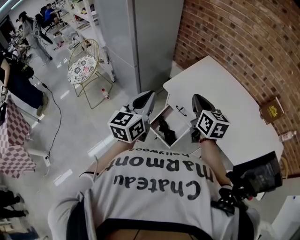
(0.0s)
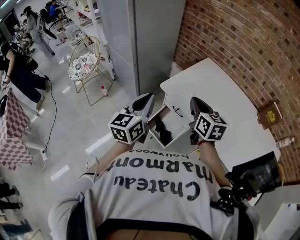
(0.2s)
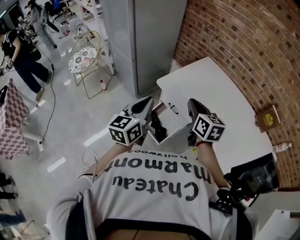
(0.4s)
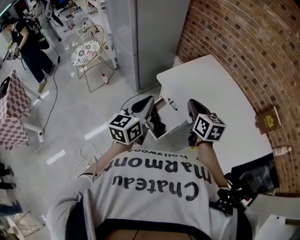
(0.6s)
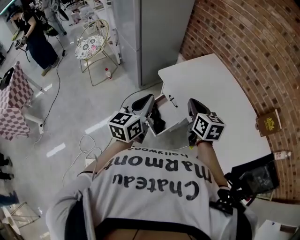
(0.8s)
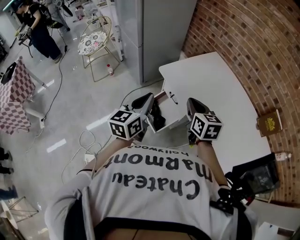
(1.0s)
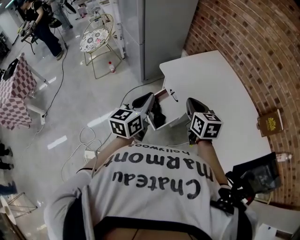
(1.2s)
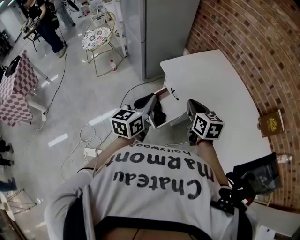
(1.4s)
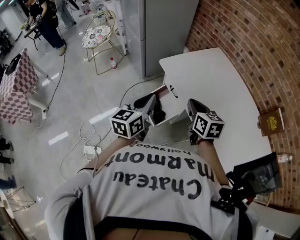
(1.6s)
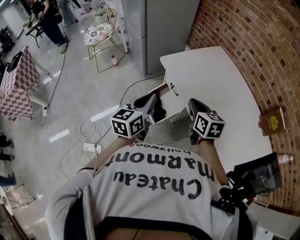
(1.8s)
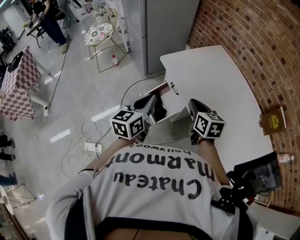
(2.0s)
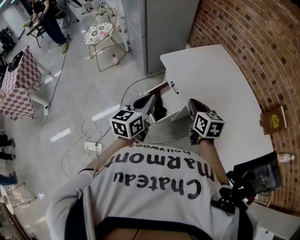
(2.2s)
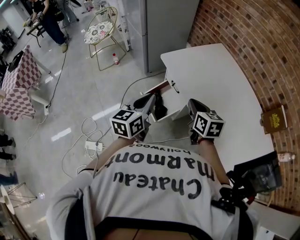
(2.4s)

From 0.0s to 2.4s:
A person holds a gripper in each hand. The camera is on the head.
From 0.0s to 1.2s: The right gripper travels to the right, downward and backward by some 15 cm, and swivels some 20 degrees; the left gripper is displaced to the right, backward and downward by roughly 15 cm.
From 1.2s to 2.4s: The right gripper shifts by approximately 5 cm; the left gripper ends up approximately 5 cm from where it was.

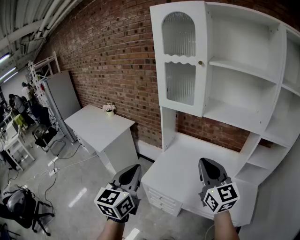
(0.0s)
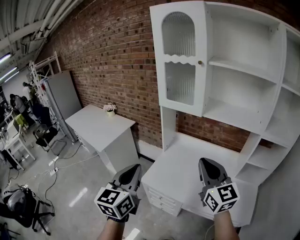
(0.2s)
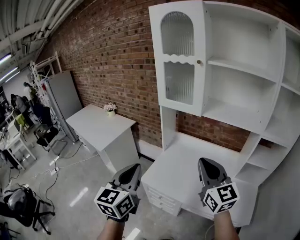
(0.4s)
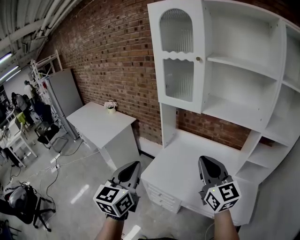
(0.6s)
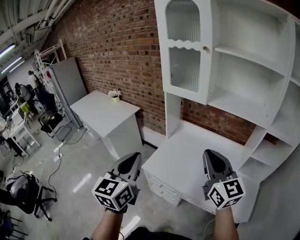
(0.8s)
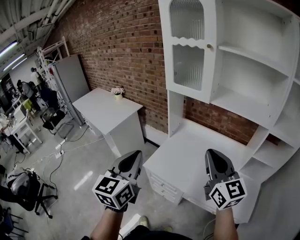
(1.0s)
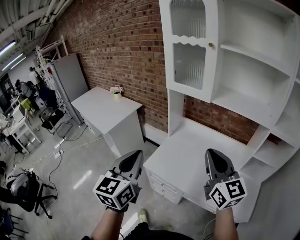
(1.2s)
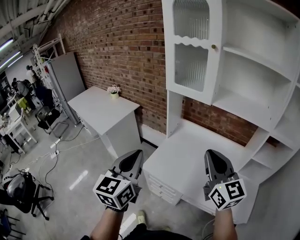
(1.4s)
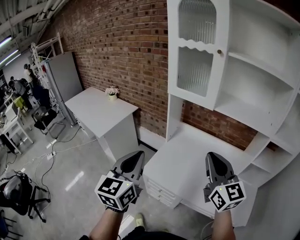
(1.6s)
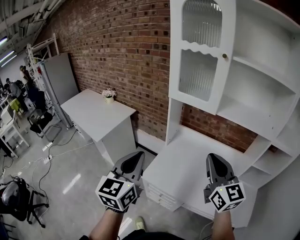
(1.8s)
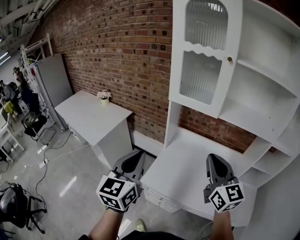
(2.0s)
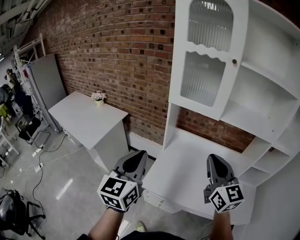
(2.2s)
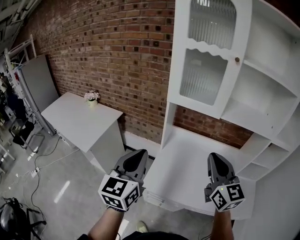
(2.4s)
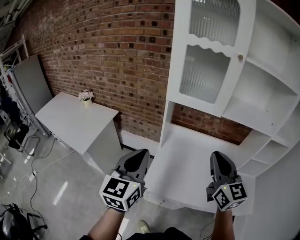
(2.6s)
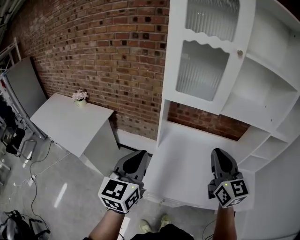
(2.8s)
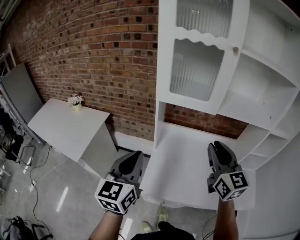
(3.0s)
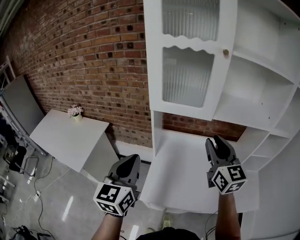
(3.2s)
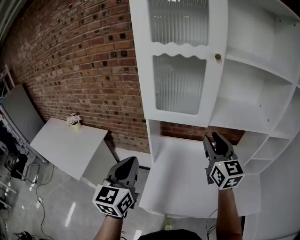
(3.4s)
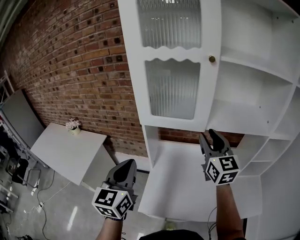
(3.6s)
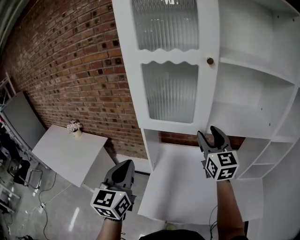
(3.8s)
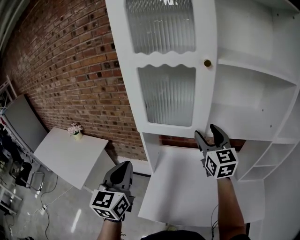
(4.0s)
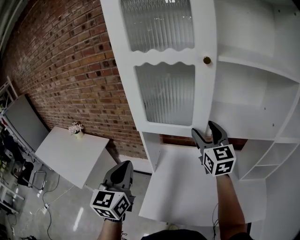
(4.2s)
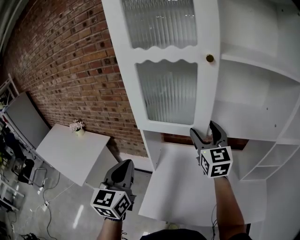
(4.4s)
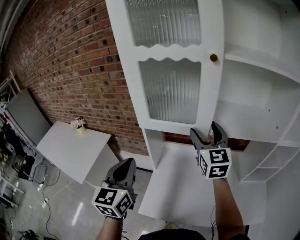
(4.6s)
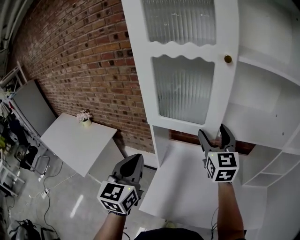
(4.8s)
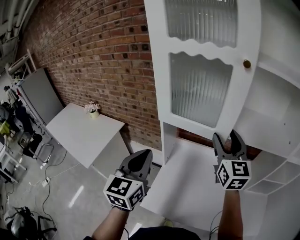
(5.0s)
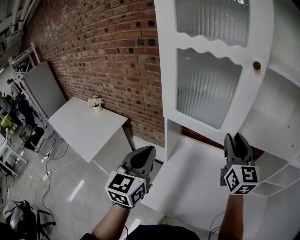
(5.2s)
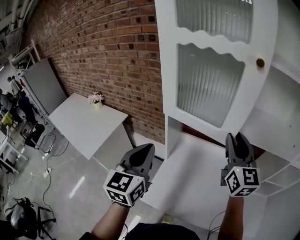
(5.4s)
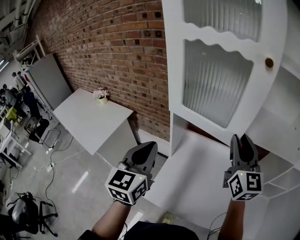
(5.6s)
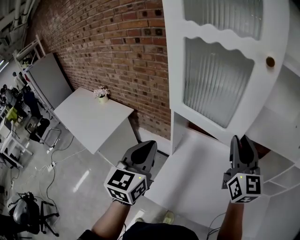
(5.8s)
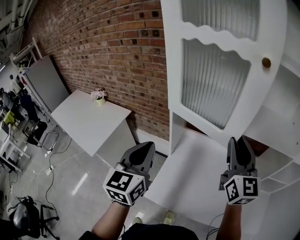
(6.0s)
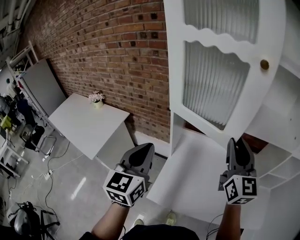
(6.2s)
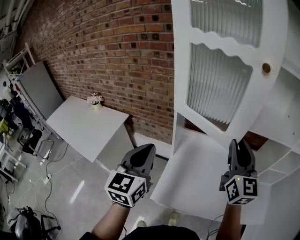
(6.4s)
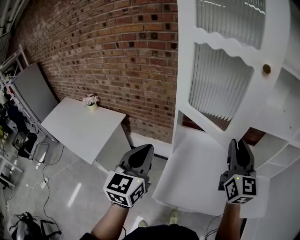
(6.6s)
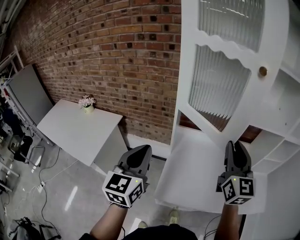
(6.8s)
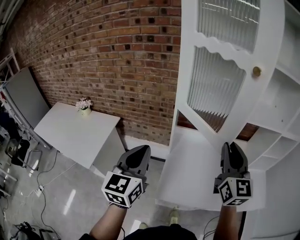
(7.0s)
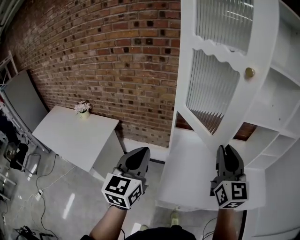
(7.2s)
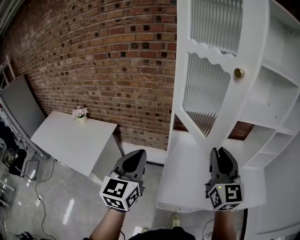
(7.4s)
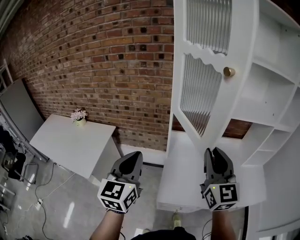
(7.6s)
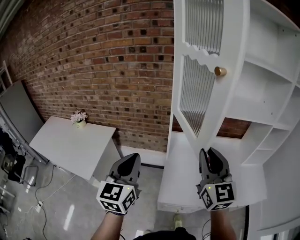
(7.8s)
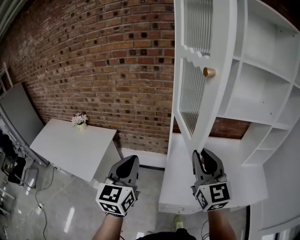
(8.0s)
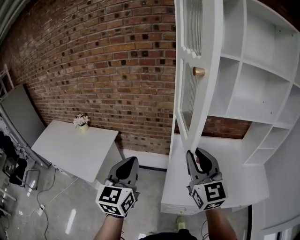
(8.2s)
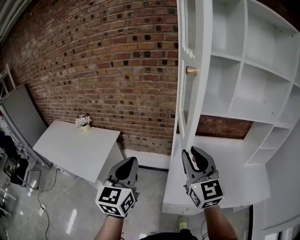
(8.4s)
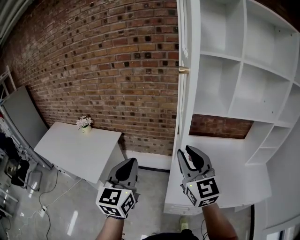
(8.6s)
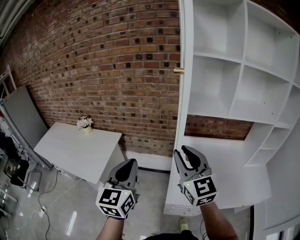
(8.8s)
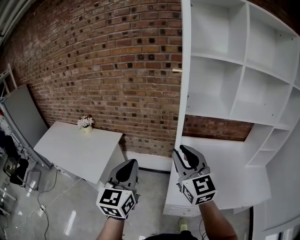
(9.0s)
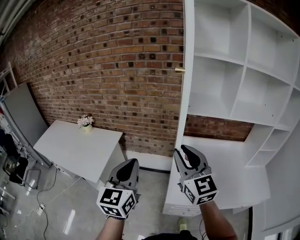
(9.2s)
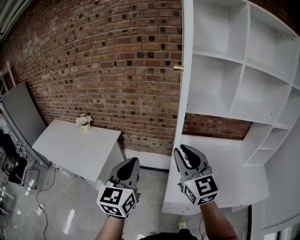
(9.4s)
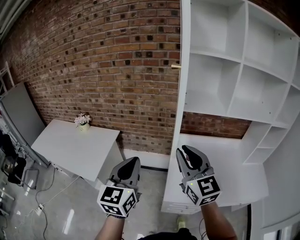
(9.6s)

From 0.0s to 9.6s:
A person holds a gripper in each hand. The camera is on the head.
From 0.0s to 1.6s: The grippers stay close to where they were, moving slightly.
From 1.6s to 3.2s: The two grippers go some 20 cm forward. The right gripper rotates about 20 degrees.
From 3.2s to 4.8s: The right gripper shifts about 15 cm forward, and opens, while the left gripper heads forward, covering about 10 cm.
From 4.8s to 6.4s: The left gripper heads to the left, covering roughly 5 cm. Meanwhile the right gripper shifts approximately 10 cm backward, and closes.
From 6.4s to 8.0s: The right gripper is displaced to the left and backward by approximately 20 cm; the left gripper is displaced to the left and backward by some 15 cm.
From 8.0s to 9.6s: The right gripper shifts some 10 cm to the left.

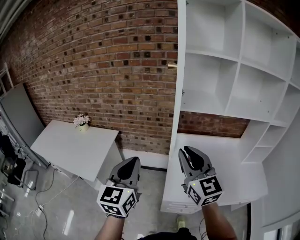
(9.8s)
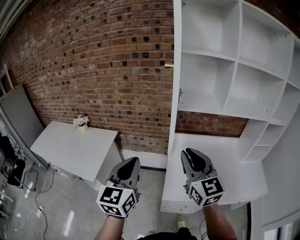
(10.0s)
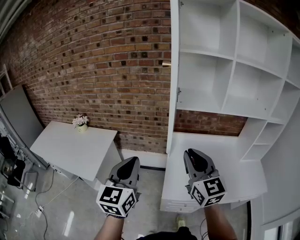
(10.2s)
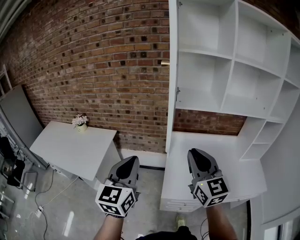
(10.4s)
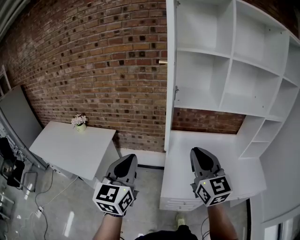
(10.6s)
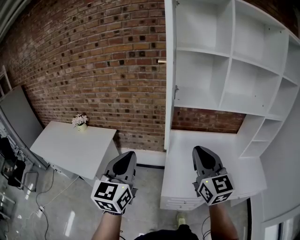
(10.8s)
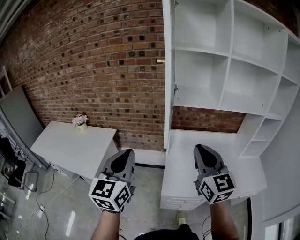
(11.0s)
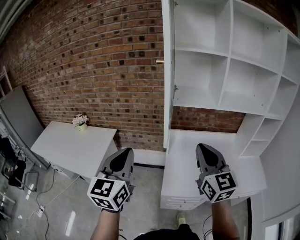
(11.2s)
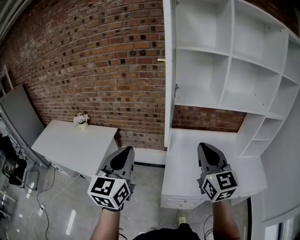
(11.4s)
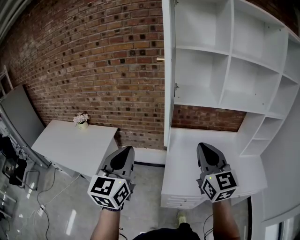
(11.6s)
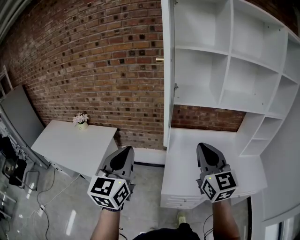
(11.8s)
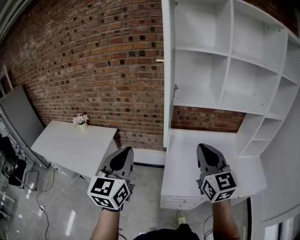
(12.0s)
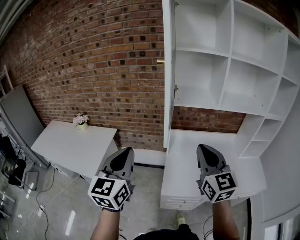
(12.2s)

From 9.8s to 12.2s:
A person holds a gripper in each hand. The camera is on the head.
From 9.8s to 11.0s: The right gripper goes roughly 5 cm to the right.
From 11.0s to 12.2s: Both grippers stay put.

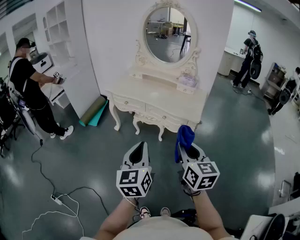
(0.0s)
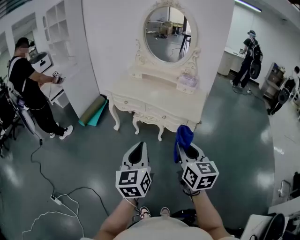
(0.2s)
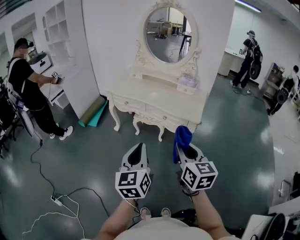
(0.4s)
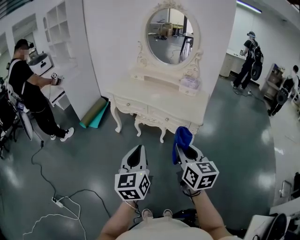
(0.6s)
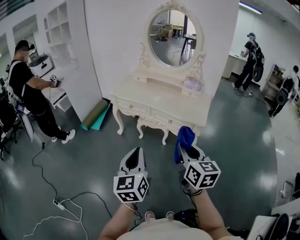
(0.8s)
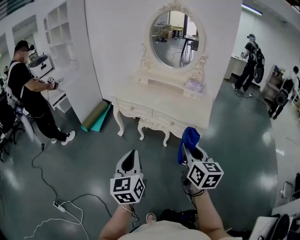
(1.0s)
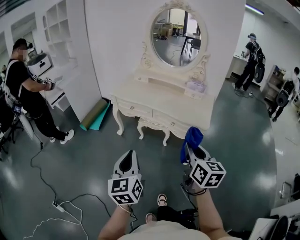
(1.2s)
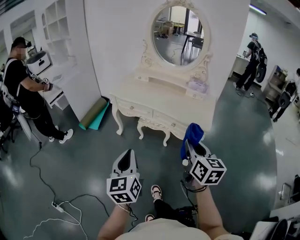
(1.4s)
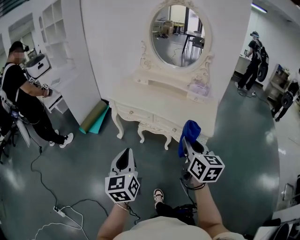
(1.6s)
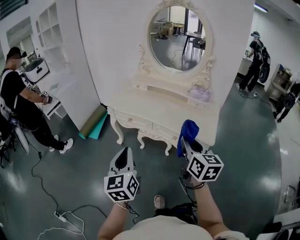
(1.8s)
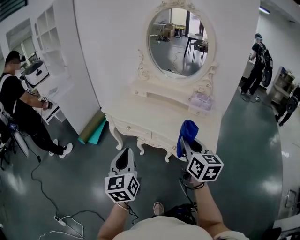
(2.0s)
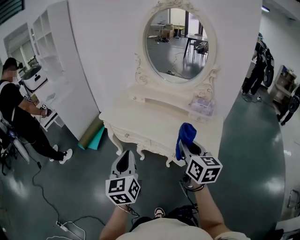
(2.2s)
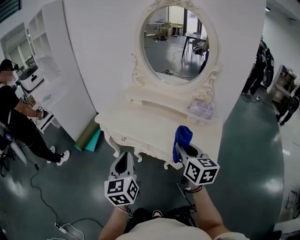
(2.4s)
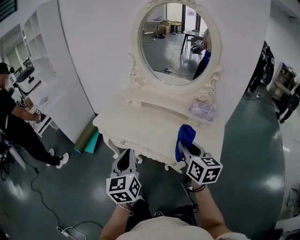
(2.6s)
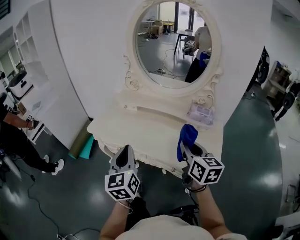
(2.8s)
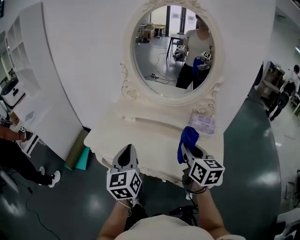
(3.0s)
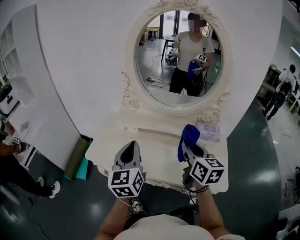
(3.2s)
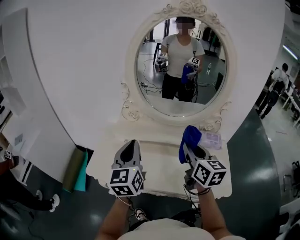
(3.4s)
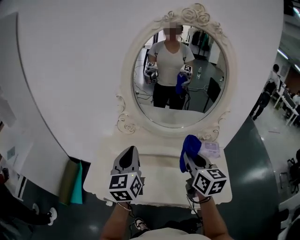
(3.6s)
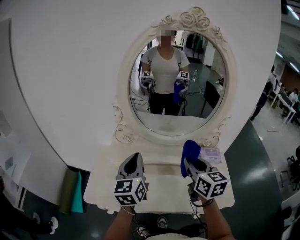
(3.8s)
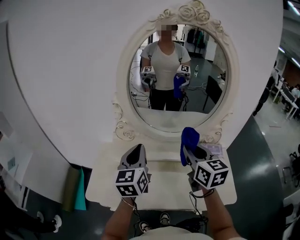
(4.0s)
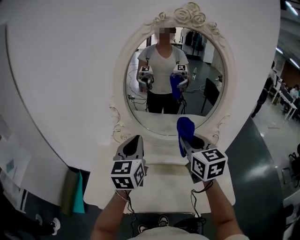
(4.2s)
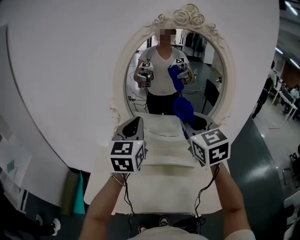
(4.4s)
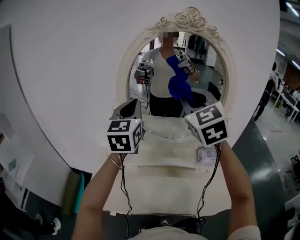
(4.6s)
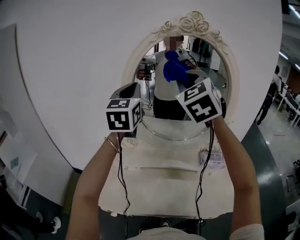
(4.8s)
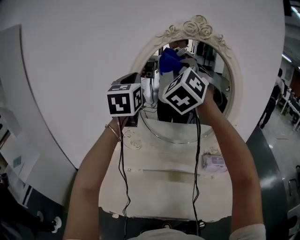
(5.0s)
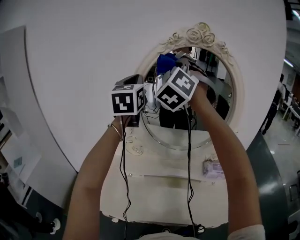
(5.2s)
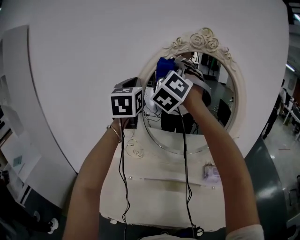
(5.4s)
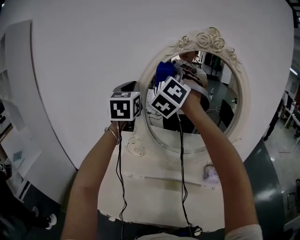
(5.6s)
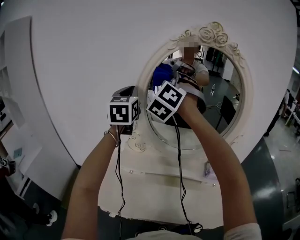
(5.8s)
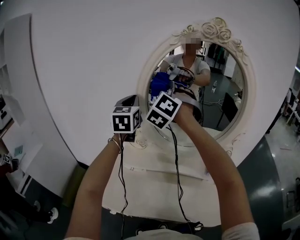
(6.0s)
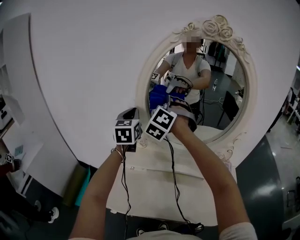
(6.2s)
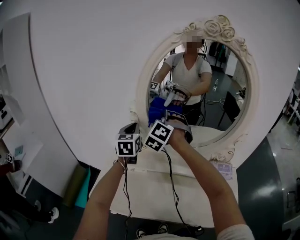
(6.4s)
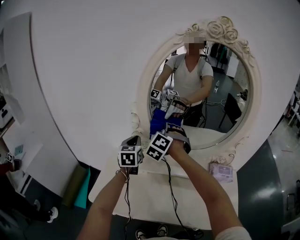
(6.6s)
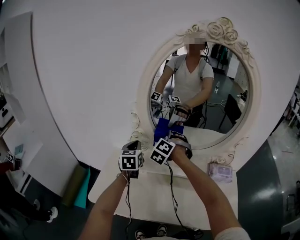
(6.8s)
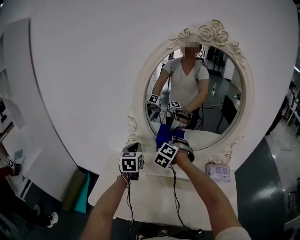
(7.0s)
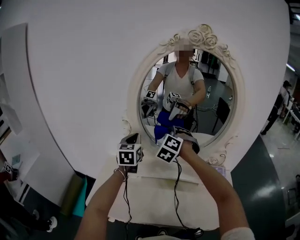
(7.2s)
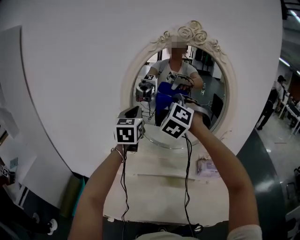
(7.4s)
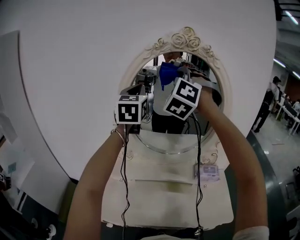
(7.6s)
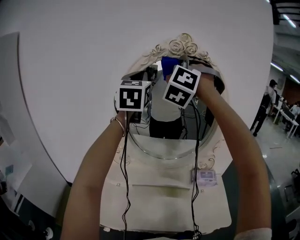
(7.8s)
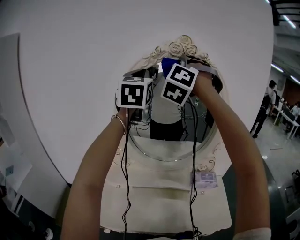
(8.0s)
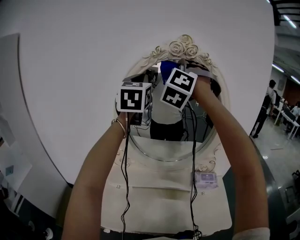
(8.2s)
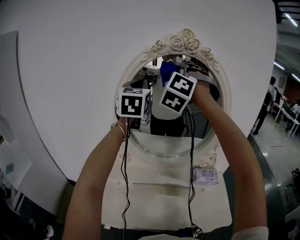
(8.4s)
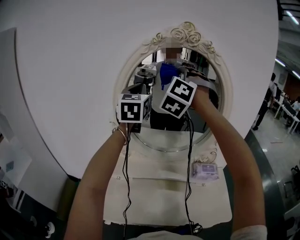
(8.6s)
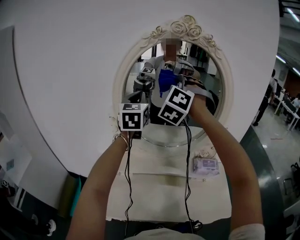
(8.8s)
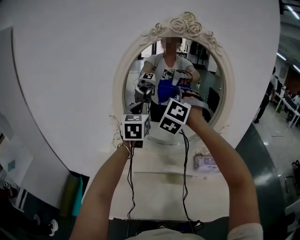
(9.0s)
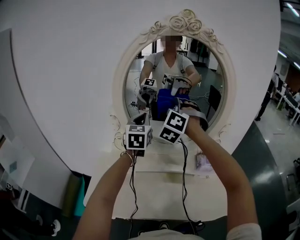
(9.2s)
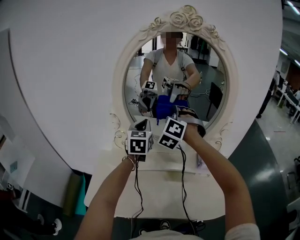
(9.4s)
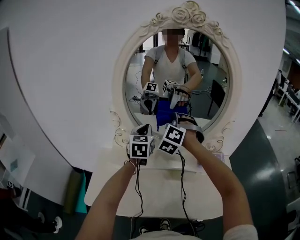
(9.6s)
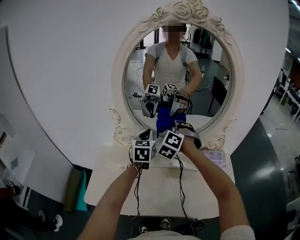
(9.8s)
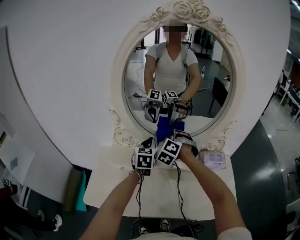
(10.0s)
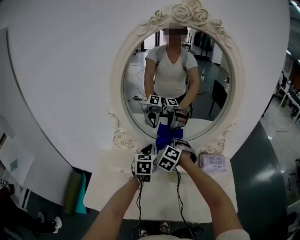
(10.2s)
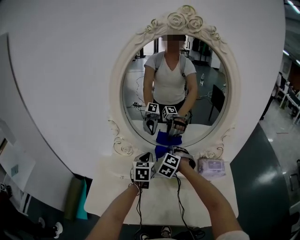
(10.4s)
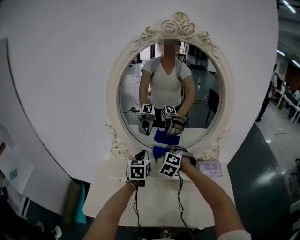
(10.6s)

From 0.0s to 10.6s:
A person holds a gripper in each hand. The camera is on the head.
From 0.0s to 1.6s: The right gripper travels forward by about 15 cm, while the left gripper moves forward and to the left, about 20 cm.
From 1.6s to 3.0s: The two grippers go about 40 cm forward.
From 3.0s to 4.6s: The right gripper travels upward, forward and to the left by approximately 40 cm, and rotates around the line of its fingers by some 50 degrees, counterclockwise from behind. The left gripper goes some 40 cm forward and upward, and swivels roughly 30 degrees.
From 4.6s to 6.0s: The grippers both shift to the left and forward by some 15 cm. The right gripper turns by about 40 degrees. The left gripper moves approximately 10 cm upward and comes back.
From 6.0s to 7.6s: Both grippers travel together to the right, about 10 cm. The right gripper travels downward and back again, some 30 cm each way; the left gripper moves about 25 cm downward and comes back.
From 7.6s to 9.0s: Both grippers move downward, about 15 cm.
From 9.0s to 10.6s: The grippers both shift downward by approximately 25 cm. The right gripper rotates about 30 degrees.
